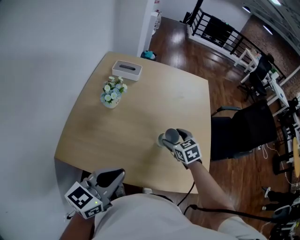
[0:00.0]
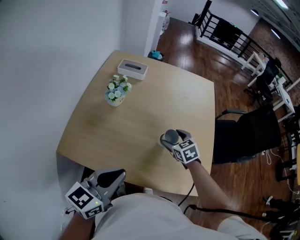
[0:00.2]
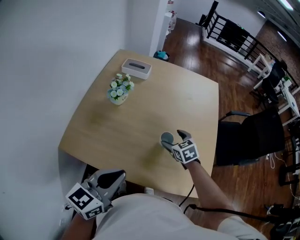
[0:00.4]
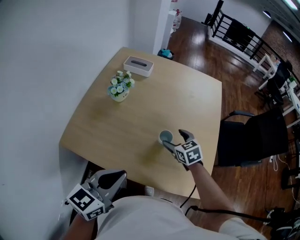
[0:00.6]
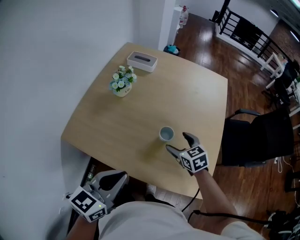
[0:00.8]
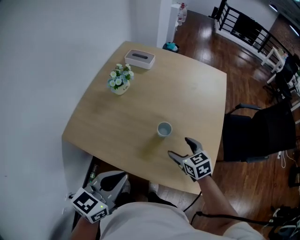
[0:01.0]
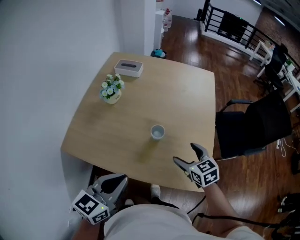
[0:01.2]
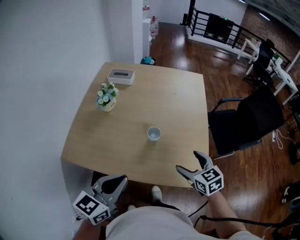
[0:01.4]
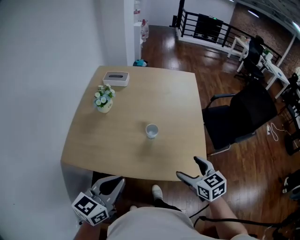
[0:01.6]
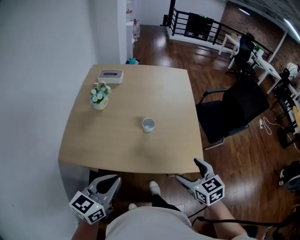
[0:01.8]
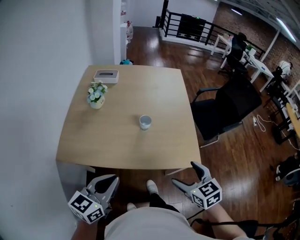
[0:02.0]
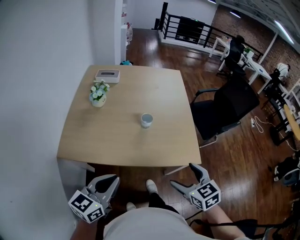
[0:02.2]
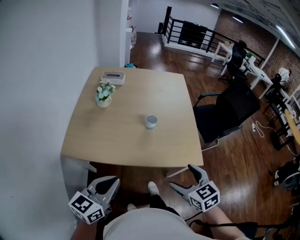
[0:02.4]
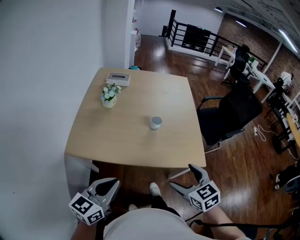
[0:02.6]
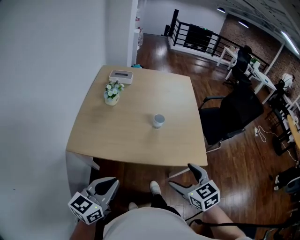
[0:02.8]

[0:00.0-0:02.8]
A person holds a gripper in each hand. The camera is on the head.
0:00.0 to 0:01.4: The right gripper heads backward and to the right, covering some 20 cm. The left gripper heads to the right and backward, covering approximately 10 cm.
0:01.4 to 0:02.8: The grippers both shift backward and to the left by some 25 cm.

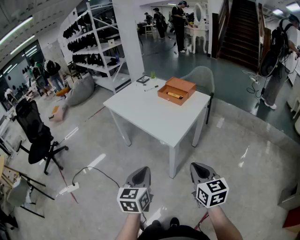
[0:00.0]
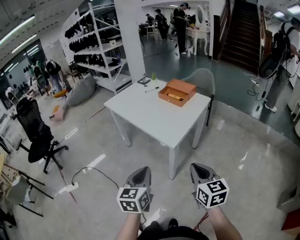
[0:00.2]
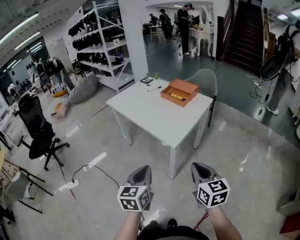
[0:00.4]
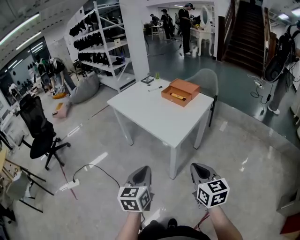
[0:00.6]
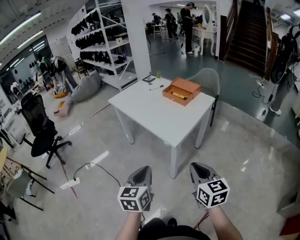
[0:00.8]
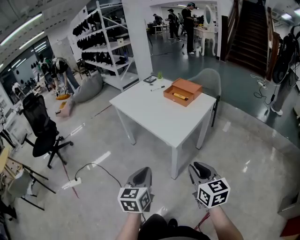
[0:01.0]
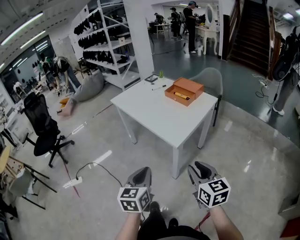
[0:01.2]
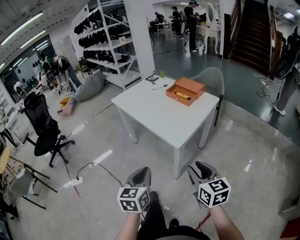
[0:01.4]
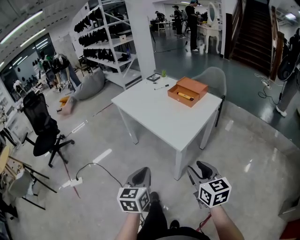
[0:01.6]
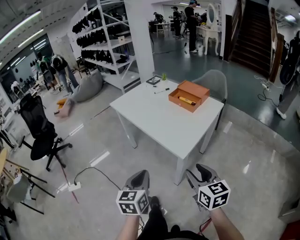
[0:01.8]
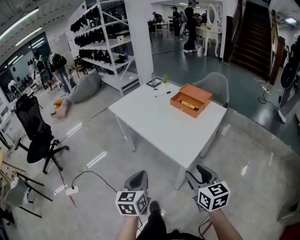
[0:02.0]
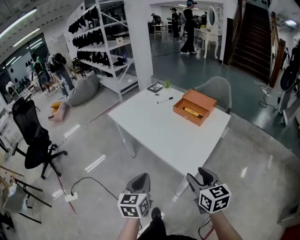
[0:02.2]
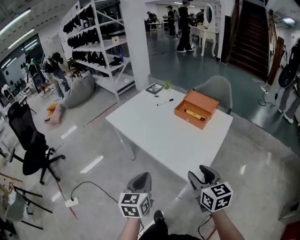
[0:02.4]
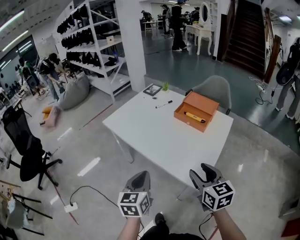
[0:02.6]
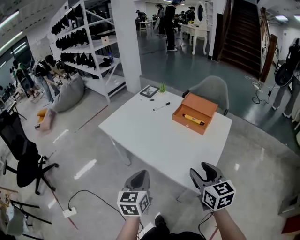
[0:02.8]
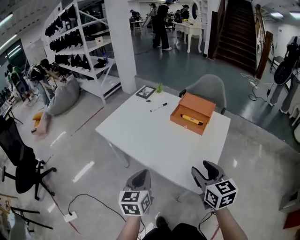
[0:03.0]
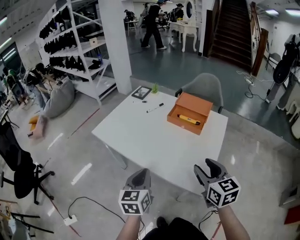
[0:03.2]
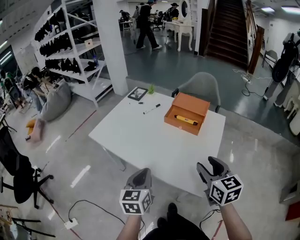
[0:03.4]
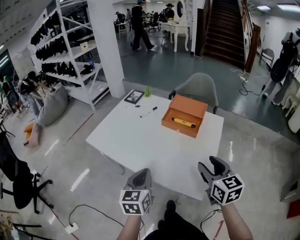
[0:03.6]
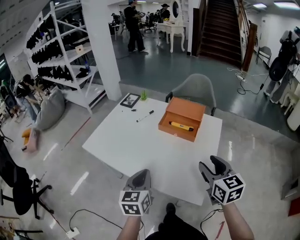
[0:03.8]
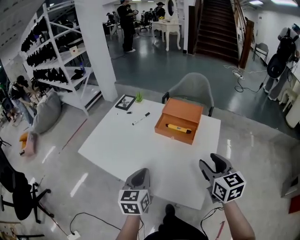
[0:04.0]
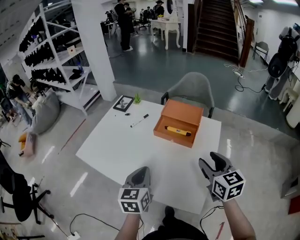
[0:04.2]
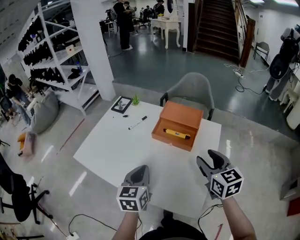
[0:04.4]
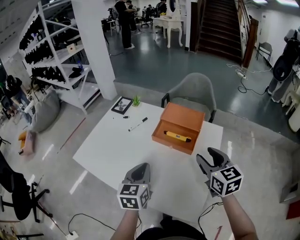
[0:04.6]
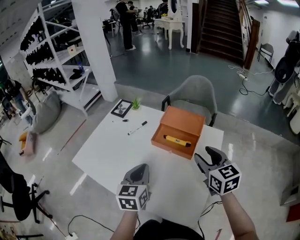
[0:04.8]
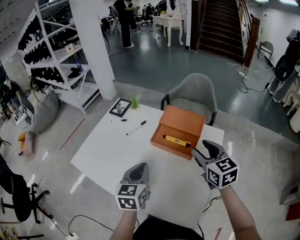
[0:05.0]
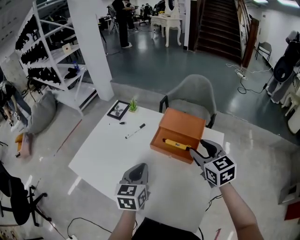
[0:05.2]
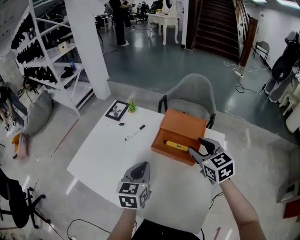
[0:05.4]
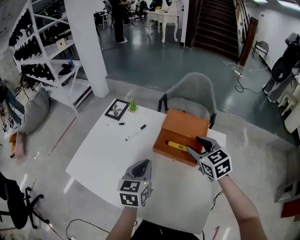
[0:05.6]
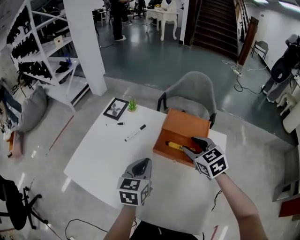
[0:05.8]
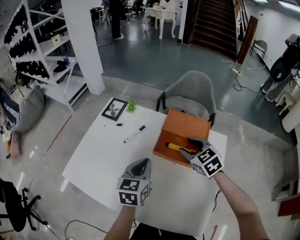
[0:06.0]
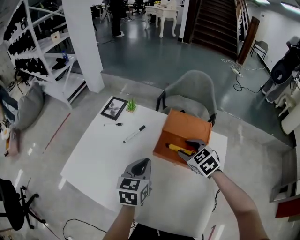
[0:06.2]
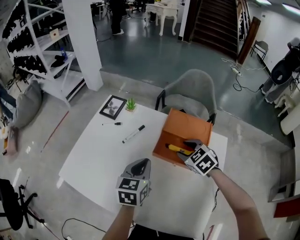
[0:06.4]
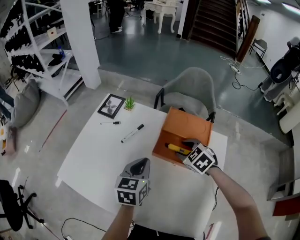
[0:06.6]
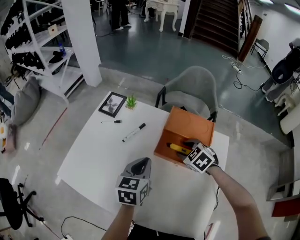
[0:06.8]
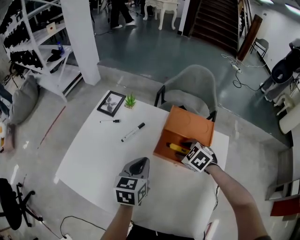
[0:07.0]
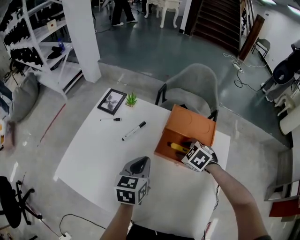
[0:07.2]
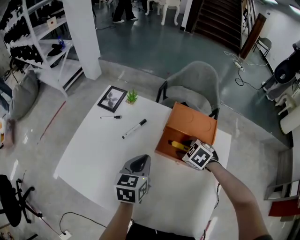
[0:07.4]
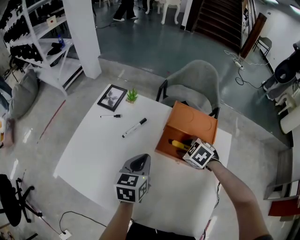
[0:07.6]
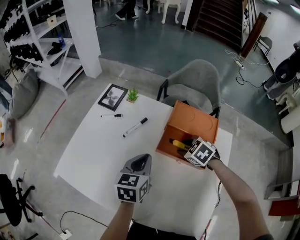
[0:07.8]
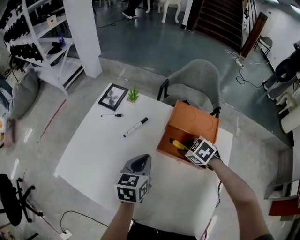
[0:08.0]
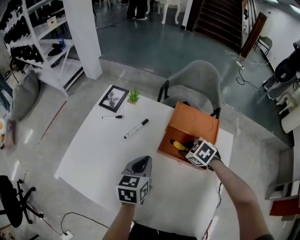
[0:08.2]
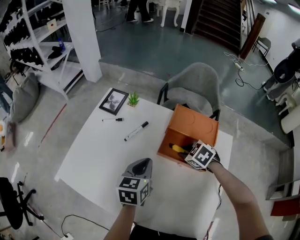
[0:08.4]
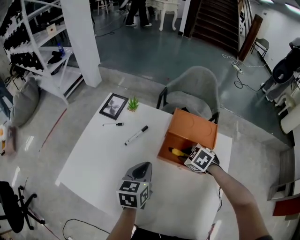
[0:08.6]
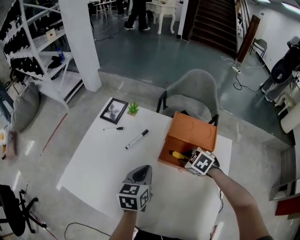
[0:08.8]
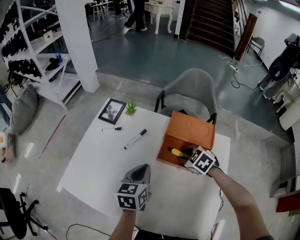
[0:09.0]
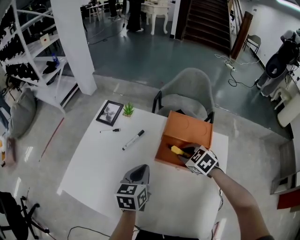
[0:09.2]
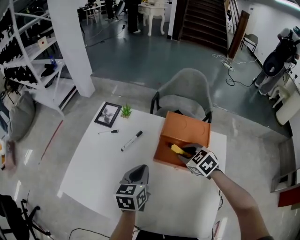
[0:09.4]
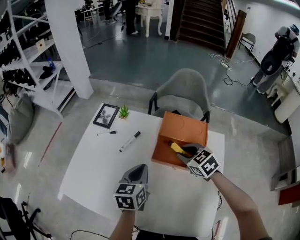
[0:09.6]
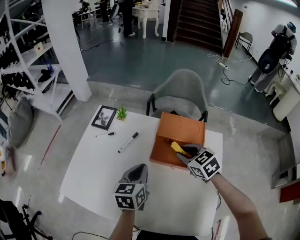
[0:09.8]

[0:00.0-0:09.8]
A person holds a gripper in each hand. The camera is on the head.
0:00.0 to 0:01.4: The right gripper opens its fingers.
0:01.4 to 0:02.8: Both grippers move forward, approximately 30 cm.
0:02.8 to 0:04.2: The left gripper moves forward, some 20 cm. The right gripper moves forward and to the right, about 20 cm.
0:04.2 to 0:05.6: Both grippers travel together forward, about 20 cm.
0:05.6 to 0:07.0: The left gripper moves forward, approximately 5 cm. The right gripper is displaced downward by about 15 cm, and angles its fingers downward, by roughly 30 degrees.
0:07.0 to 0:08.4: The right gripper closes its fingers.
0:08.4 to 0:09.8: The right gripper travels upward by roughly 10 cm, and rotates some 30 degrees.

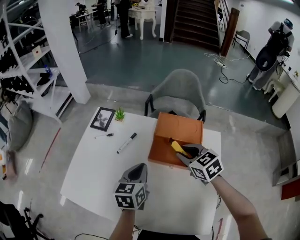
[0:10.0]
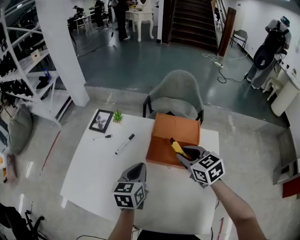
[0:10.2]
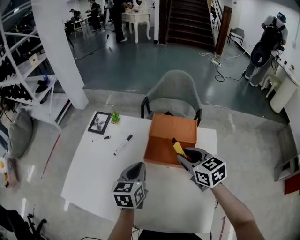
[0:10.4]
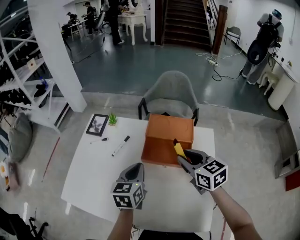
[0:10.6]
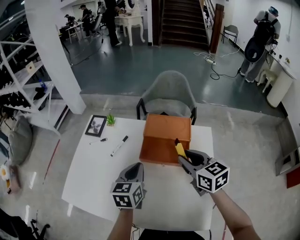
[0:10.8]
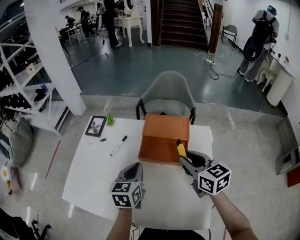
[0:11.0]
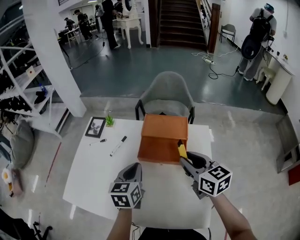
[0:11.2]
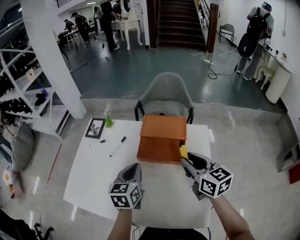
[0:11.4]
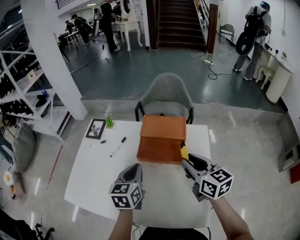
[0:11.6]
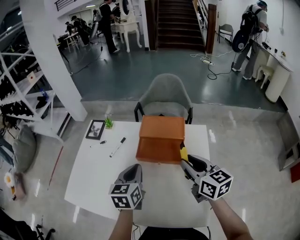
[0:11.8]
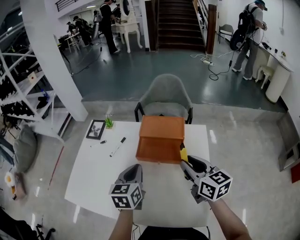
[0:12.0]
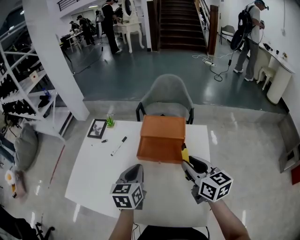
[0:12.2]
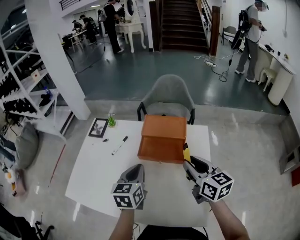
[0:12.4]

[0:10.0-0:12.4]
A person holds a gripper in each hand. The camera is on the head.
0:10.0 to 0:11.2: The right gripper shifts some 15 cm backward, upward and to the right, and swivels some 30 degrees.
0:11.2 to 0:12.4: The grippers make only small movements.

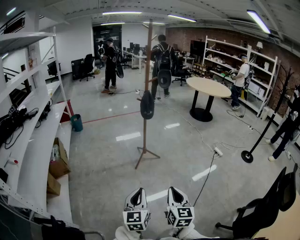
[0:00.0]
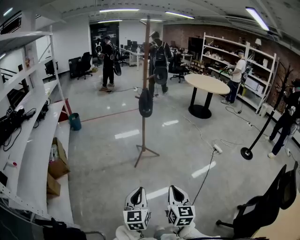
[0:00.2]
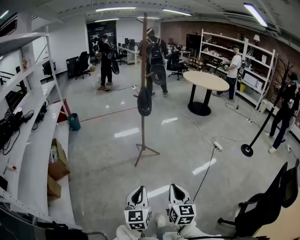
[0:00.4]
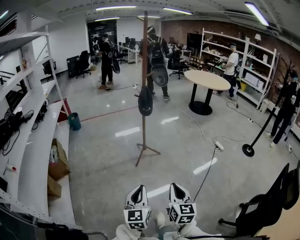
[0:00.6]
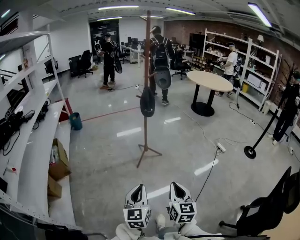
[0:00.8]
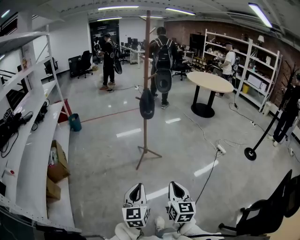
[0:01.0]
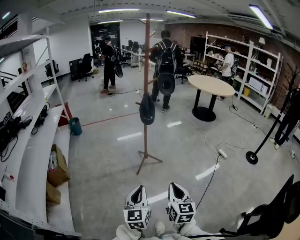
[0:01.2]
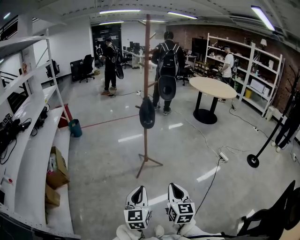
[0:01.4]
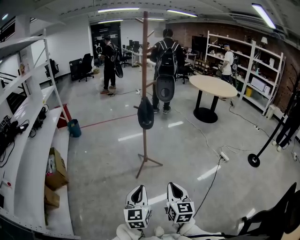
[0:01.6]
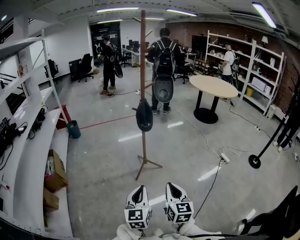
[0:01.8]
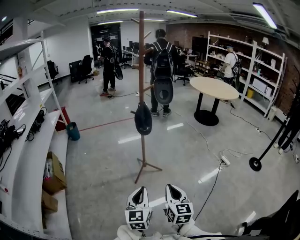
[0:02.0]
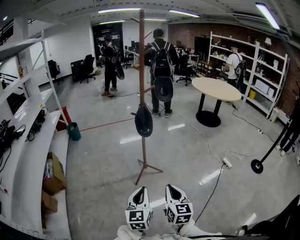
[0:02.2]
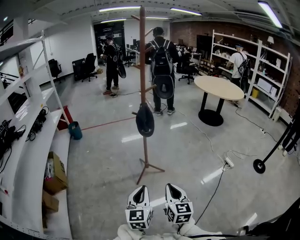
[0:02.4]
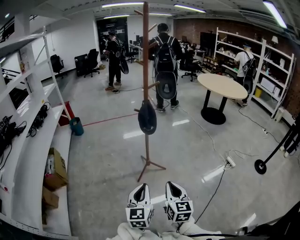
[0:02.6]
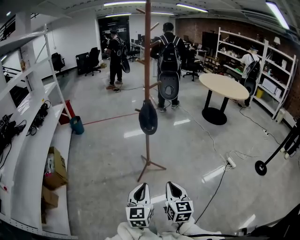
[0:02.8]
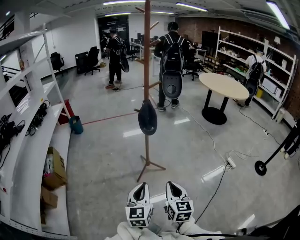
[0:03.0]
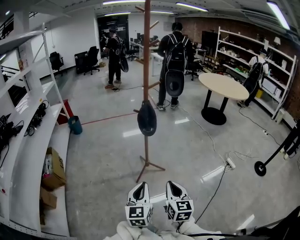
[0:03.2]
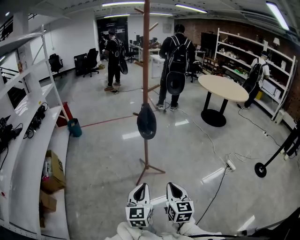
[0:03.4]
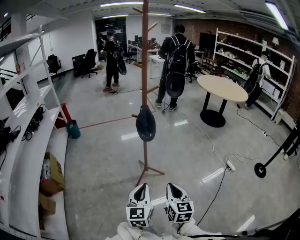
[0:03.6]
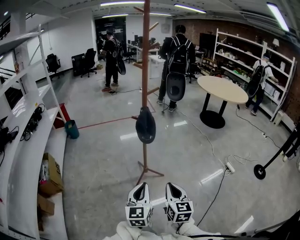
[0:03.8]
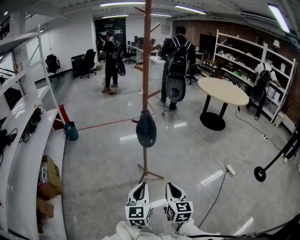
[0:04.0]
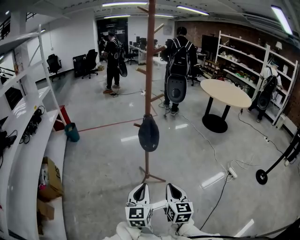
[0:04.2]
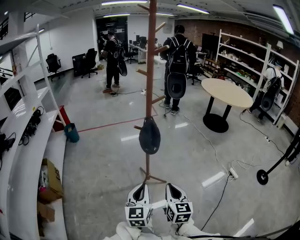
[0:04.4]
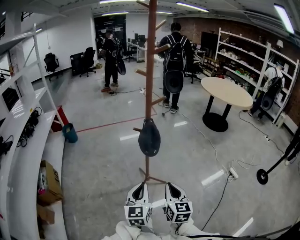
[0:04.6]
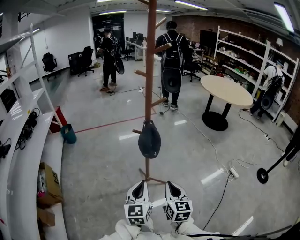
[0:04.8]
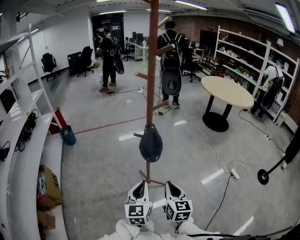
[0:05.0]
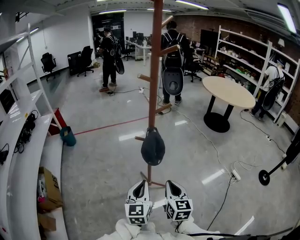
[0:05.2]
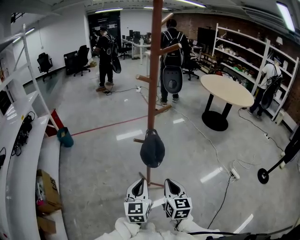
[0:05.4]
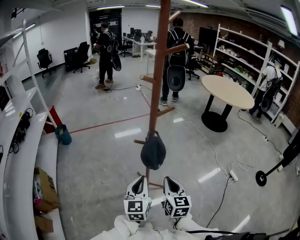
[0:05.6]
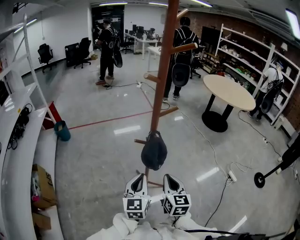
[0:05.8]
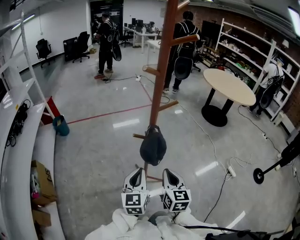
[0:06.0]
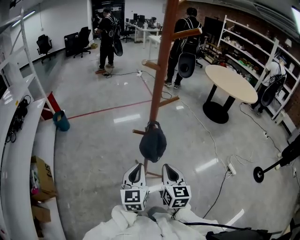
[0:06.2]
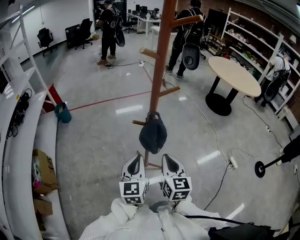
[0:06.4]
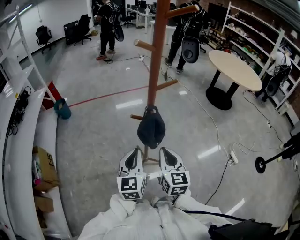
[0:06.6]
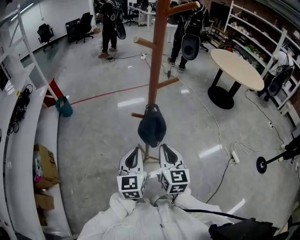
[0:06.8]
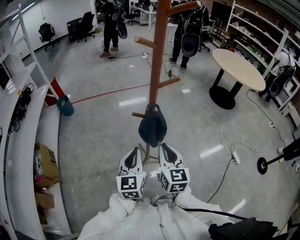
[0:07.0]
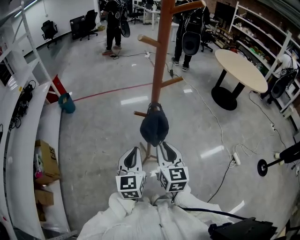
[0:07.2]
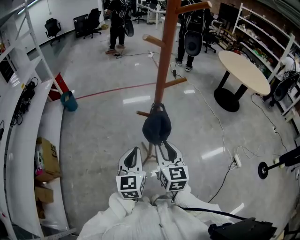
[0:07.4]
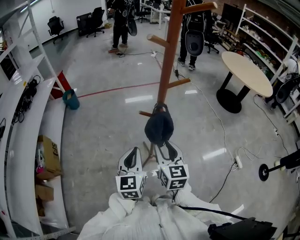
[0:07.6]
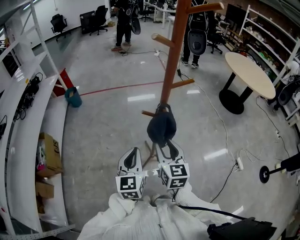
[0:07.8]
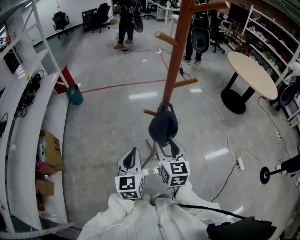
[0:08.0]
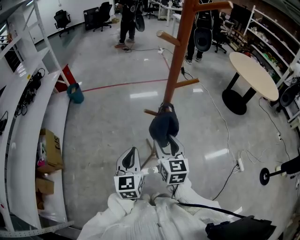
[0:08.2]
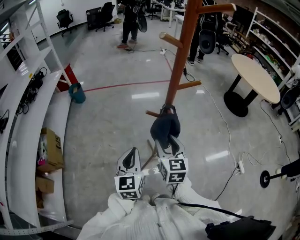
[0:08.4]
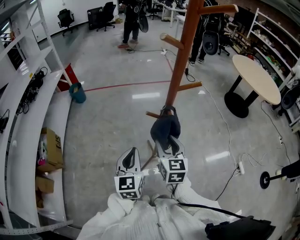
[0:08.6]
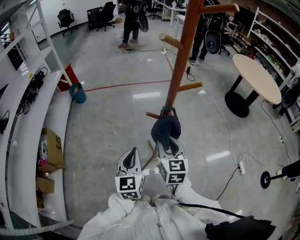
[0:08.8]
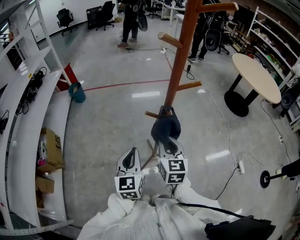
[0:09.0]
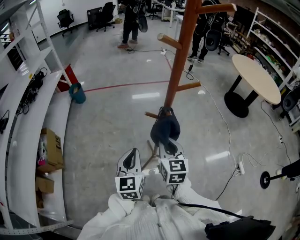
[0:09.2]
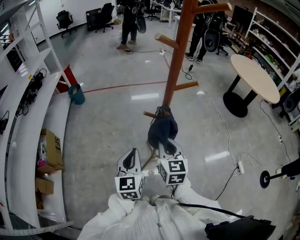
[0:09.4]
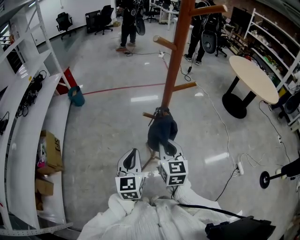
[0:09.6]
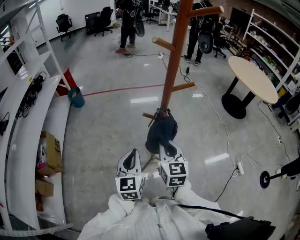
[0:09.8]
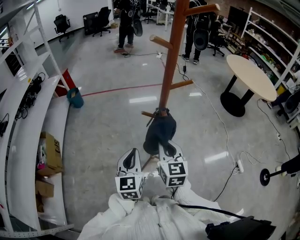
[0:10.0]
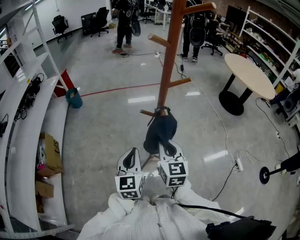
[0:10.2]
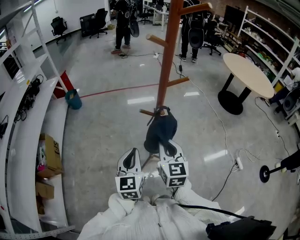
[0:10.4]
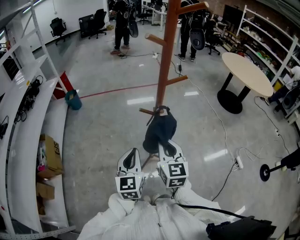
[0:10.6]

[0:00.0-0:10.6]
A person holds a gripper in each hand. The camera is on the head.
0:00.0 to 0:01.6: The grippers both shift forward by some 15 cm.
0:01.6 to 0:03.0: The two grippers go roughly 10 cm forward.
0:03.0 to 0:04.6: Both grippers move forward, some 15 cm.
0:04.6 to 0:06.0: Both grippers travel together forward, some 15 cm.
0:06.0 to 0:07.6: The right gripper shifts by approximately 5 cm, and opens.
0:07.6 to 0:09.0: The grippers move only a little.
0:09.0 to 0:10.6: The right gripper shifts by some 5 cm.
